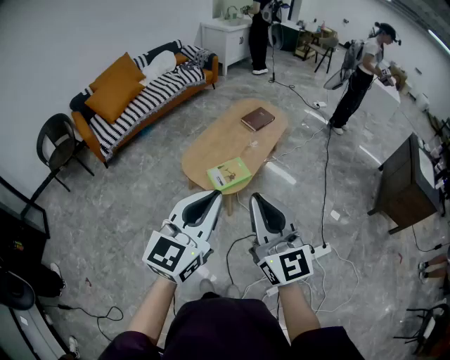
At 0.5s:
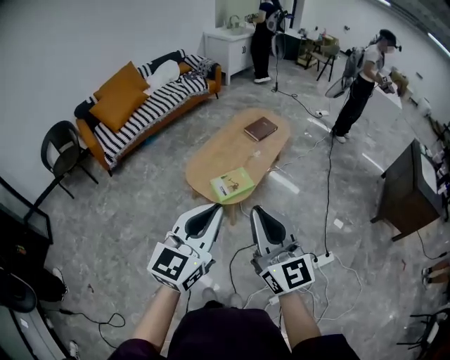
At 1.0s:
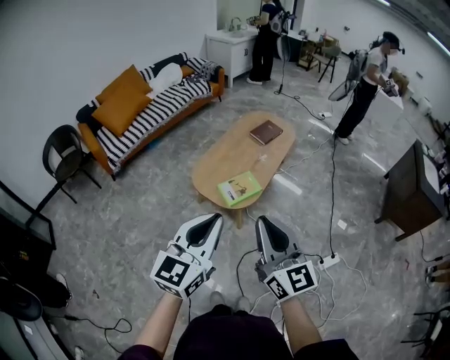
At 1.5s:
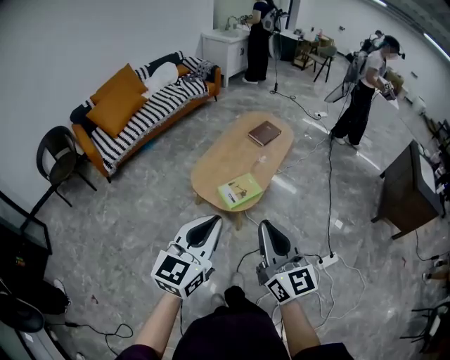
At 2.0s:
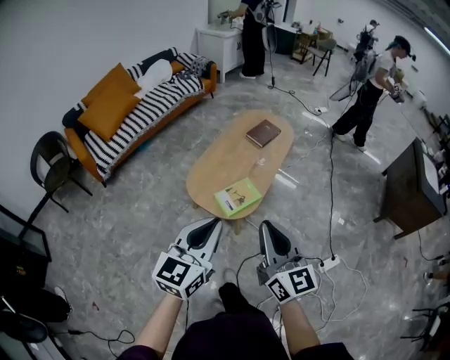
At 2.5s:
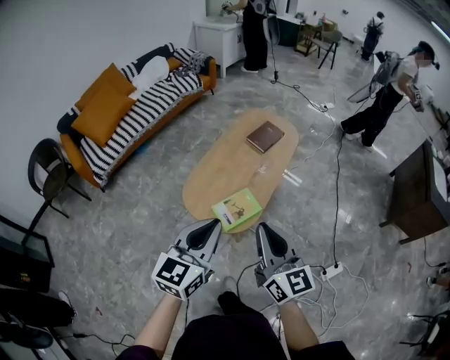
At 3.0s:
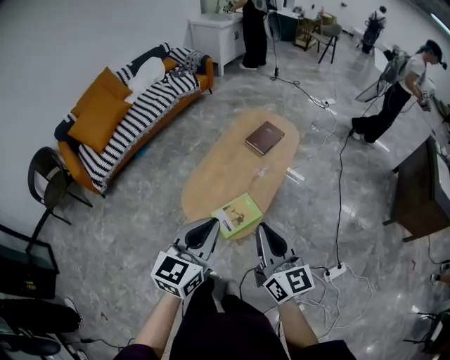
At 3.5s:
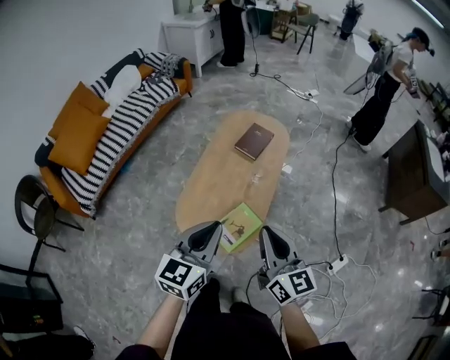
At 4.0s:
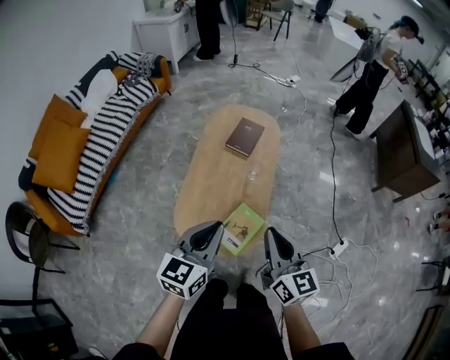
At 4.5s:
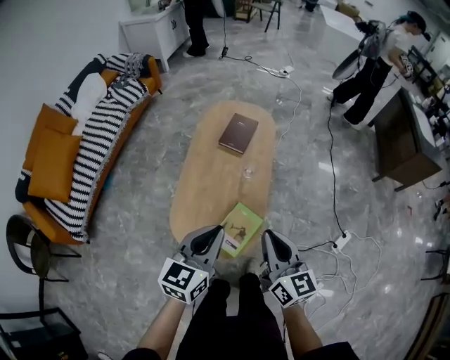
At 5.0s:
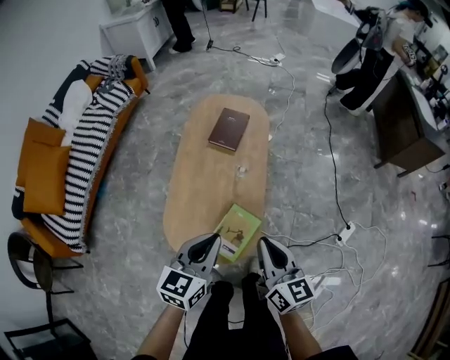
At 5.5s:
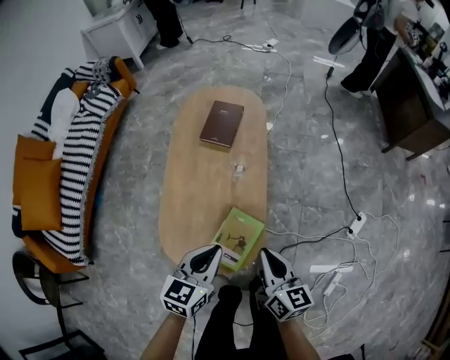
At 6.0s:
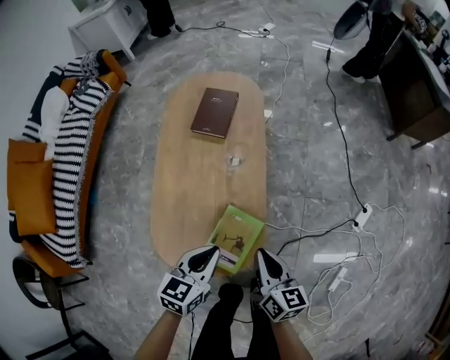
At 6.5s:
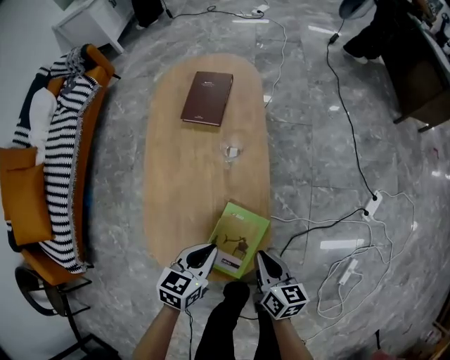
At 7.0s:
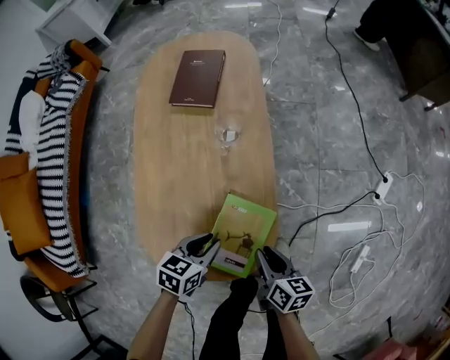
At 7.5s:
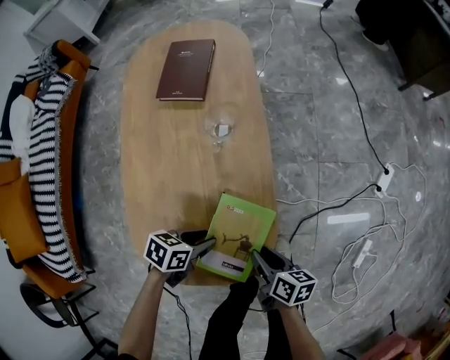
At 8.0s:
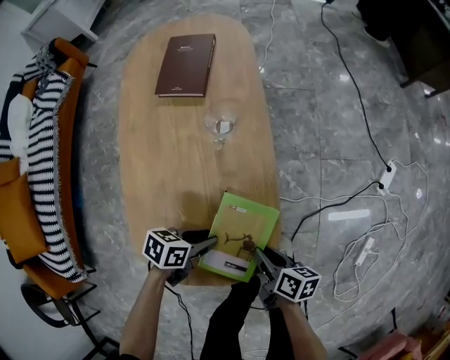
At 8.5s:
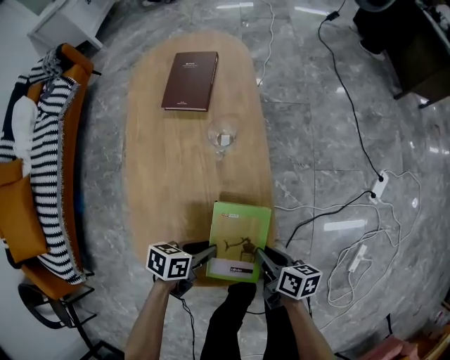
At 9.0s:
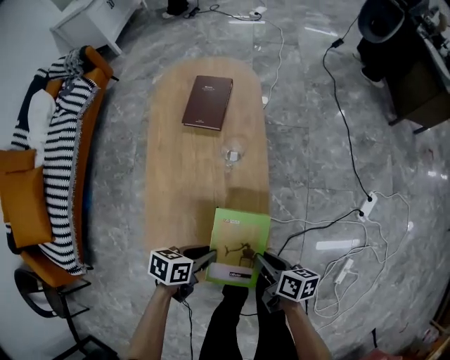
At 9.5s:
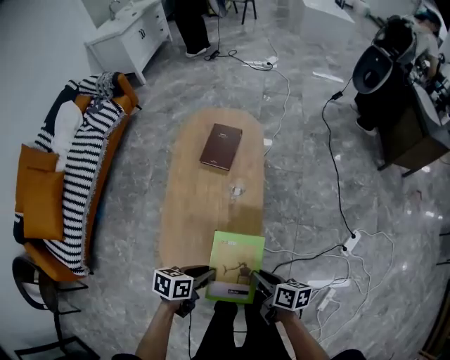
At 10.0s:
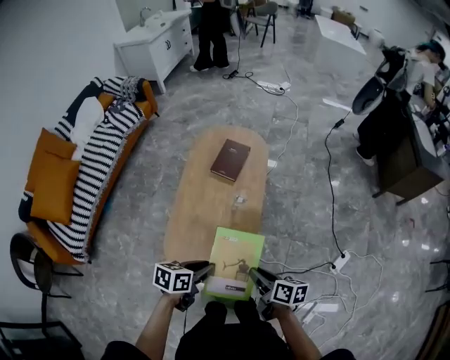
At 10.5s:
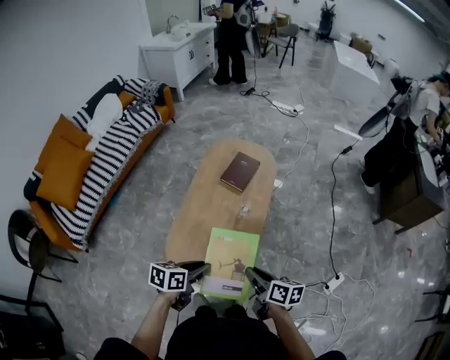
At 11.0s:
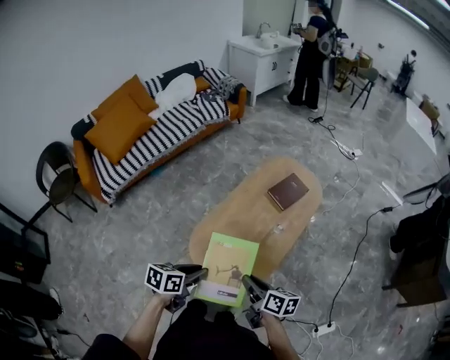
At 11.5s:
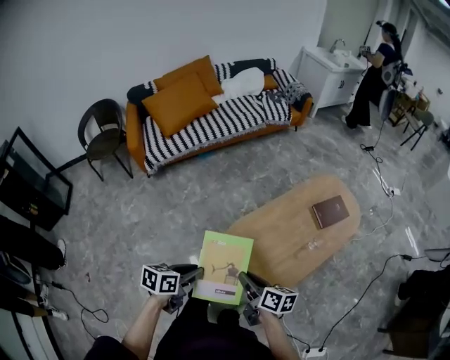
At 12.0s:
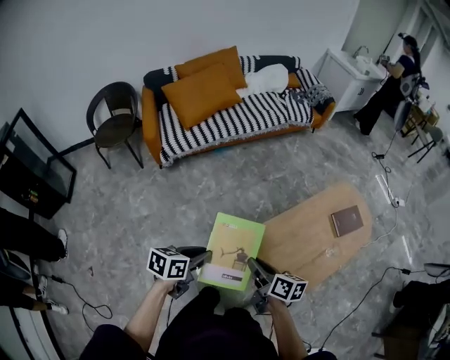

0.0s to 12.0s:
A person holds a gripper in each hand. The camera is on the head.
0.0s to 2.0s: The right gripper is displaced forward and downward by roughly 15 cm. The left gripper goes roughly 15 cm forward, downward and to the left.
2.0s to 4.0s: Both grippers move forward, about 30 cm. The right gripper changes its angle by approximately 20 degrees. The left gripper rotates roughly 20 degrees.
4.0s to 6.0s: The two grippers go roughly 25 cm downward. The left gripper turns by some 30 degrees; the right gripper turns by some 30 degrees.
6.0s to 8.0s: The grippers both shift downward by approximately 30 cm. The left gripper rotates some 40 degrees, and opens; the right gripper swivels about 40 degrees, and opens its fingers.
8.0s to 10.0s: Both grippers move upward, some 40 cm. The left gripper swivels approximately 30 degrees; the right gripper turns by approximately 20 degrees.
10.0s to 12.0s: The right gripper moves some 40 cm, and rotates roughly 50 degrees. Meanwhile the left gripper changes place by about 40 cm, and turns by about 50 degrees.

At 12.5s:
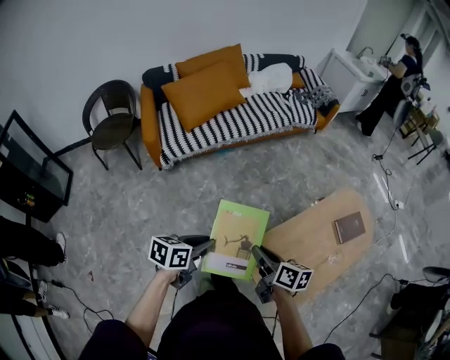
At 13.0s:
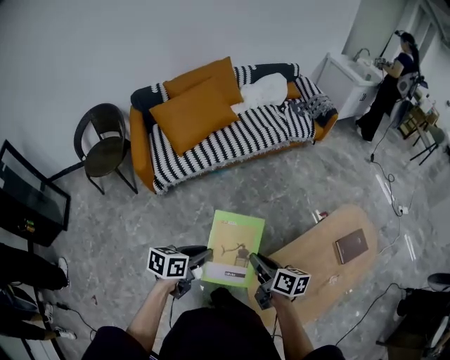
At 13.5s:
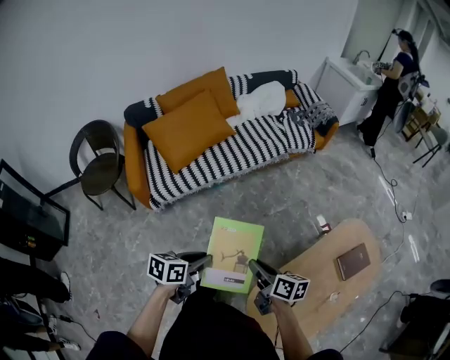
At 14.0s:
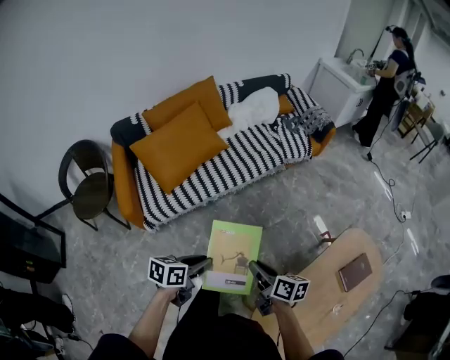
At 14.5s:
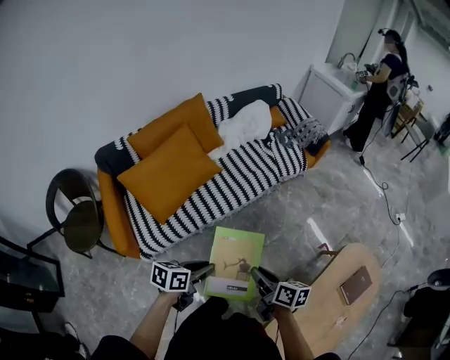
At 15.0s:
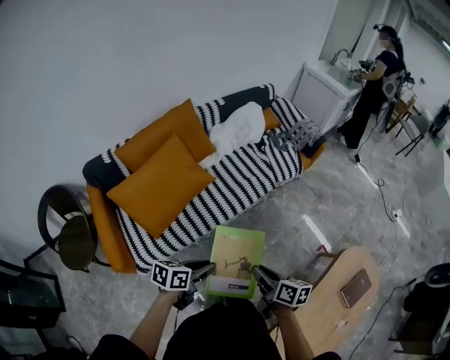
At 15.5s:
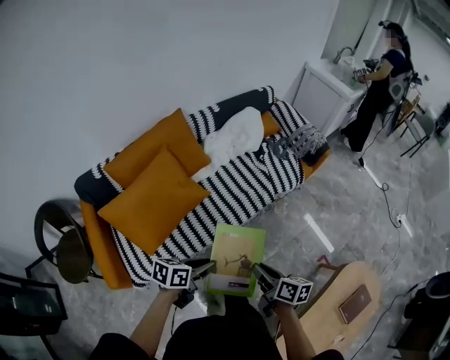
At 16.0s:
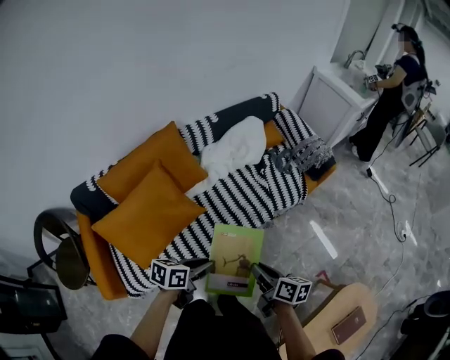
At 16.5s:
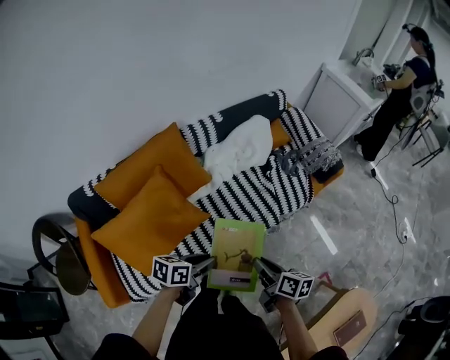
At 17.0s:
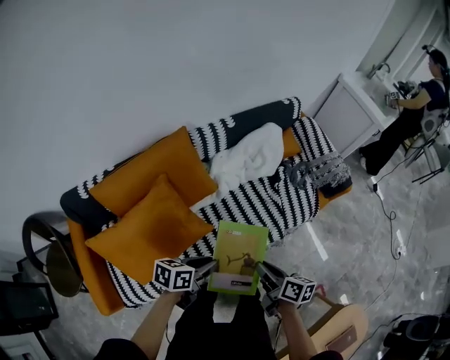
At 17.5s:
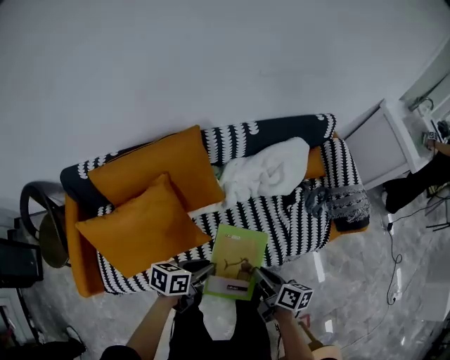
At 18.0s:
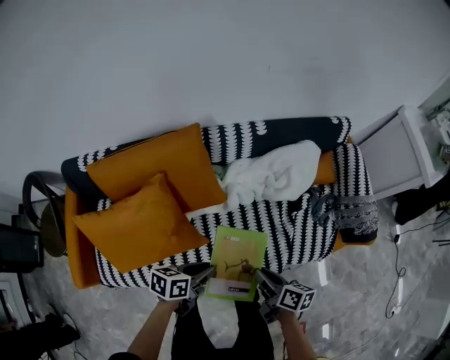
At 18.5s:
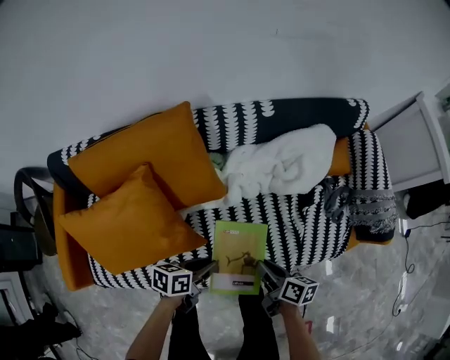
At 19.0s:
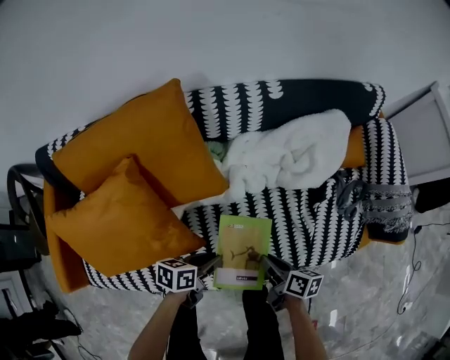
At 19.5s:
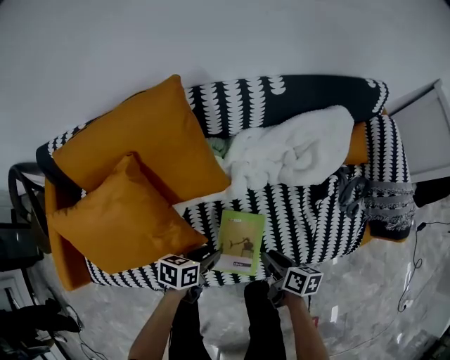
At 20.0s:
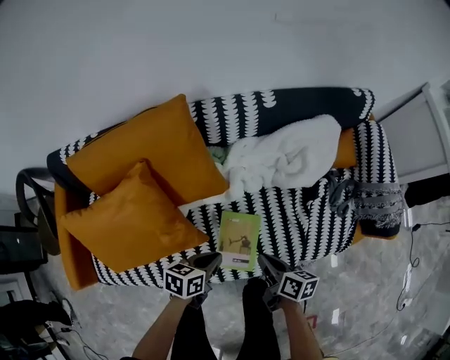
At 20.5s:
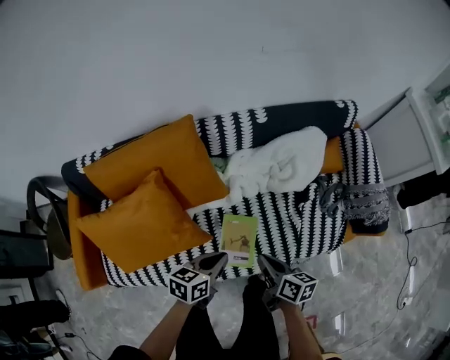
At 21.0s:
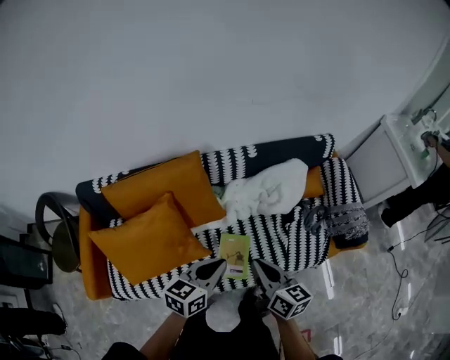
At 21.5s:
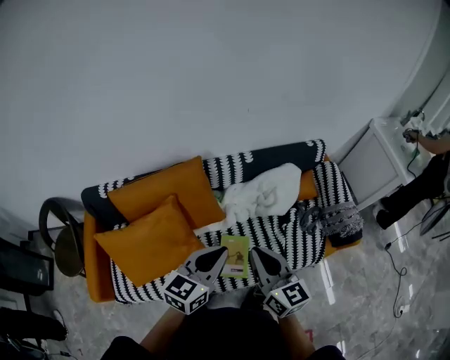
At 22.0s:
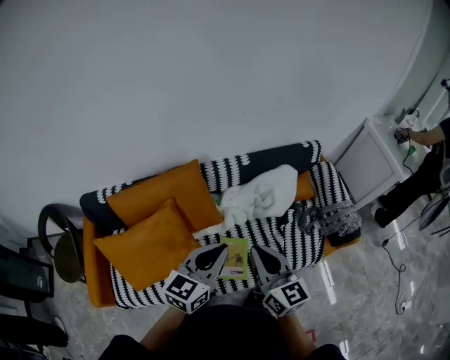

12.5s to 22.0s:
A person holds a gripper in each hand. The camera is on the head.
12.5s to 14.5s: The two grippers travel together, forward, roughly 50 cm.
14.5s to 16.5s: The two grippers travel together, forward, roughly 40 cm.
16.5s to 18.0s: The grippers both shift forward and downward by approximately 25 cm. The right gripper swivels approximately 20 degrees. Meanwhile the left gripper swivels approximately 20 degrees.
18.0s to 20.0s: The grippers both shift downward by some 15 cm.
20.0s to 22.0s: The grippers both shift upward by some 40 cm. The right gripper points its fingers roughly 30 degrees further upward, while the left gripper angles its fingers upward, by about 30 degrees.

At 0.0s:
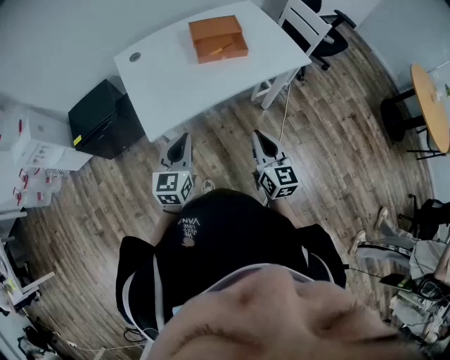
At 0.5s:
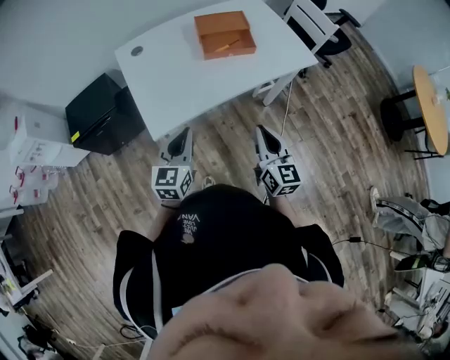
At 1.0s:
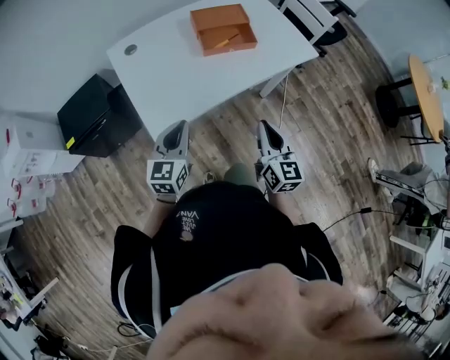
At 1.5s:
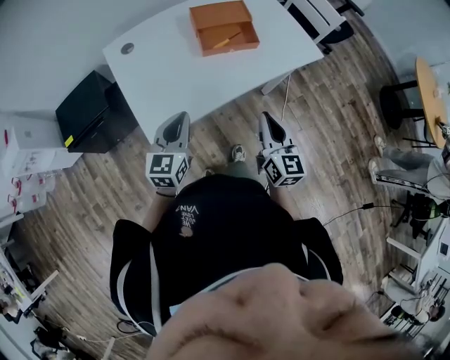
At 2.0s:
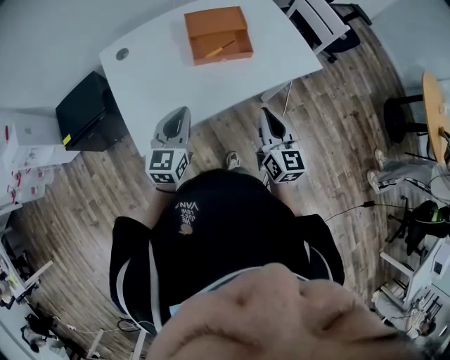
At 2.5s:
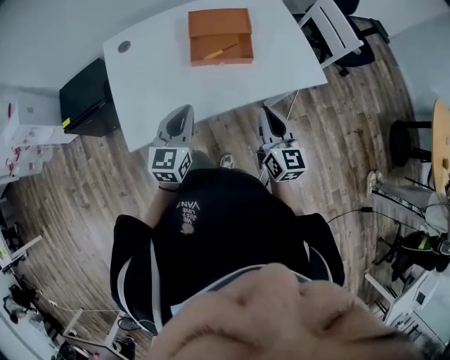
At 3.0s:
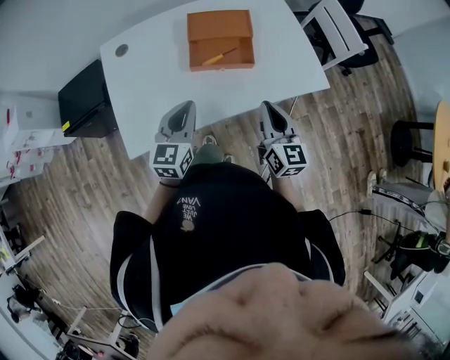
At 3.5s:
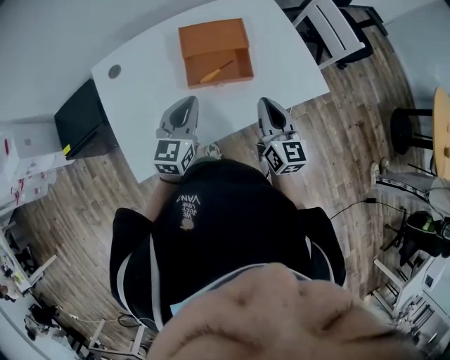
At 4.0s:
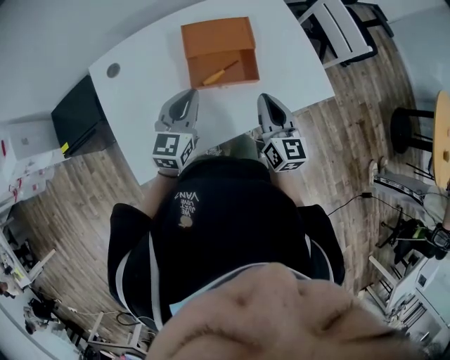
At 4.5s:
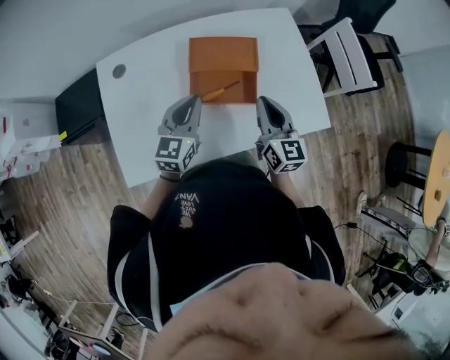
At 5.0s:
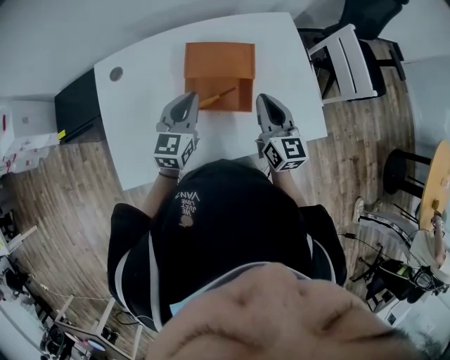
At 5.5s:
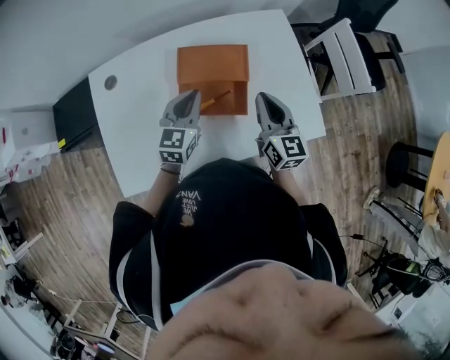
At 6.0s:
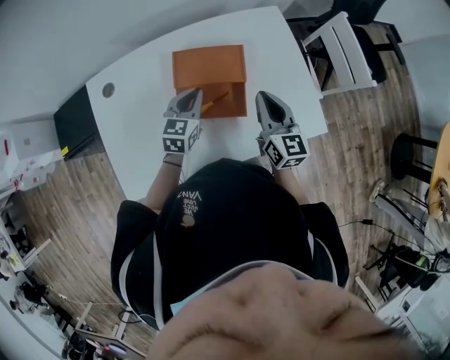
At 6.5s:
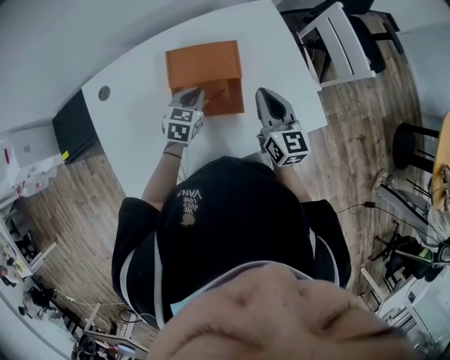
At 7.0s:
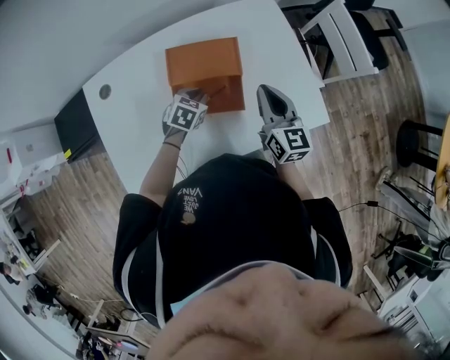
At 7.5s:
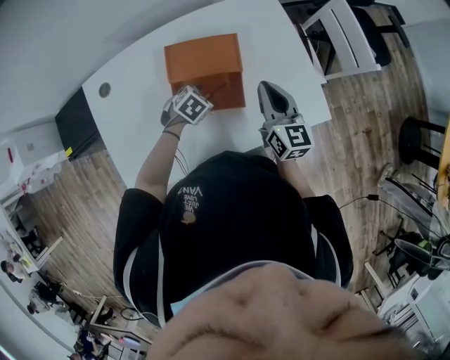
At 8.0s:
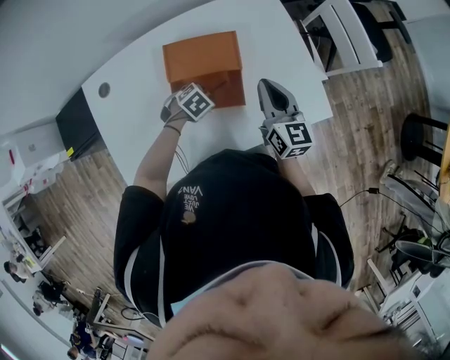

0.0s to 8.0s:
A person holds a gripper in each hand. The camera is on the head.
0.0s to 2.0s: Both grippers travel together forward, about 15 cm.
2.0s to 4.0s: The grippers both shift forward by about 20 cm.
4.0s to 6.0s: The left gripper moves forward, downward and to the right, approximately 15 cm, while the right gripper shifts roughly 15 cm forward.
6.0s to 8.0s: The left gripper is displaced downward by about 15 cm, points its fingers some 50 degrees further downward, and opens.
